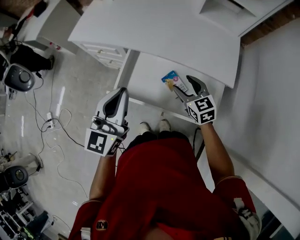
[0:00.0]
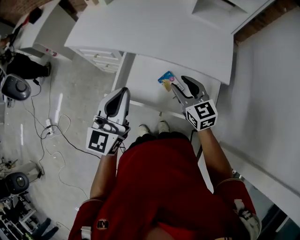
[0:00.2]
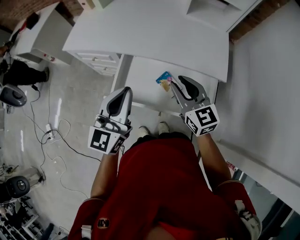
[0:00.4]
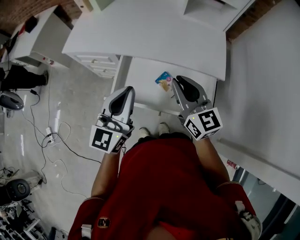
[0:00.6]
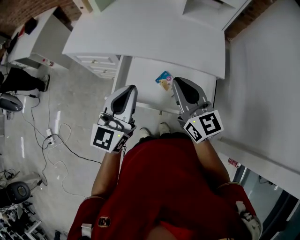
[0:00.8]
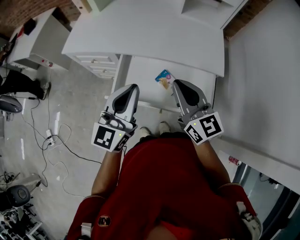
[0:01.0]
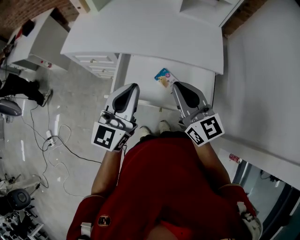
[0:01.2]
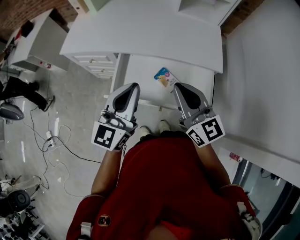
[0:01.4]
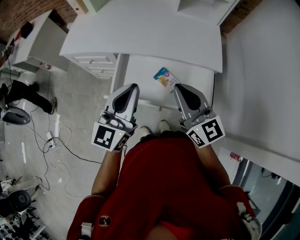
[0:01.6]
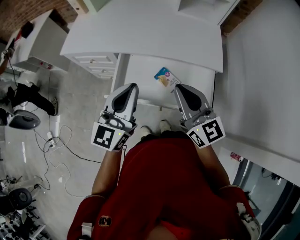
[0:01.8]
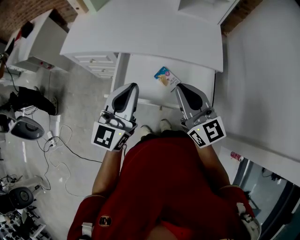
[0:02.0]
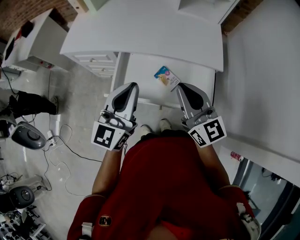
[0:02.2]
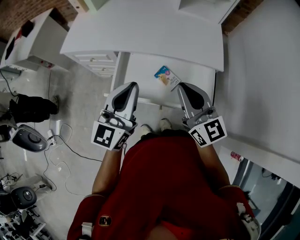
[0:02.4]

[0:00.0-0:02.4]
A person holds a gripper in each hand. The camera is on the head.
0:00.0 to 0:01.2: The right gripper heads upward and backward, covering roughly 20 cm, changes its angle by roughly 30 degrees, and closes its fingers.
0:01.2 to 0:02.4: The grippers make only small movements.

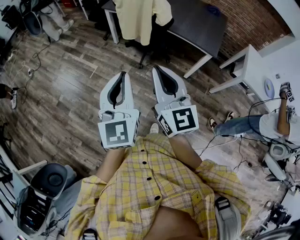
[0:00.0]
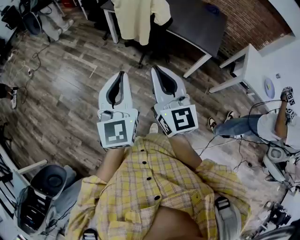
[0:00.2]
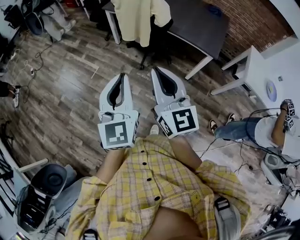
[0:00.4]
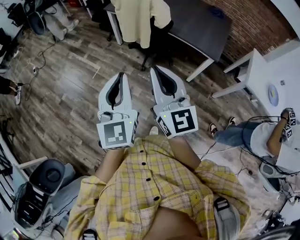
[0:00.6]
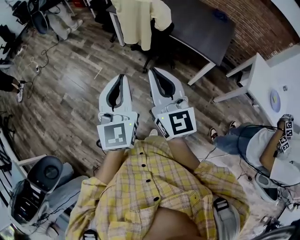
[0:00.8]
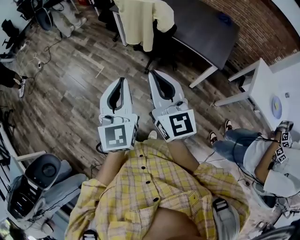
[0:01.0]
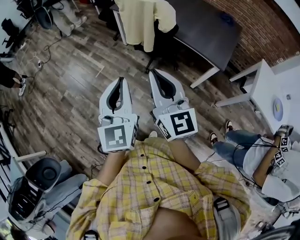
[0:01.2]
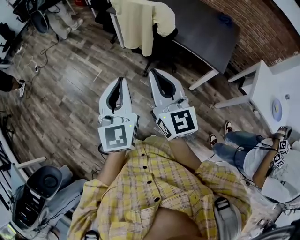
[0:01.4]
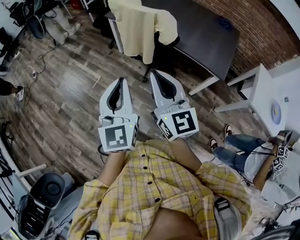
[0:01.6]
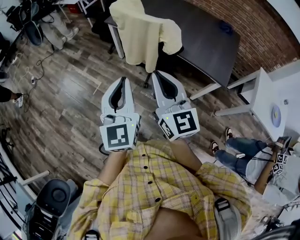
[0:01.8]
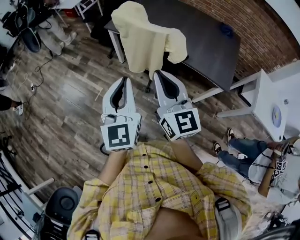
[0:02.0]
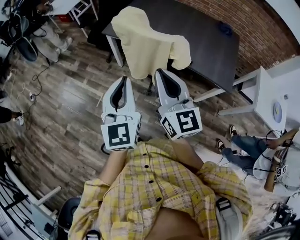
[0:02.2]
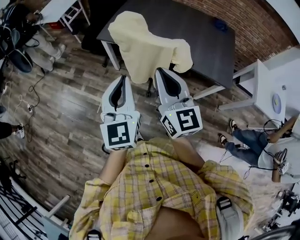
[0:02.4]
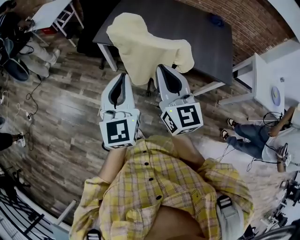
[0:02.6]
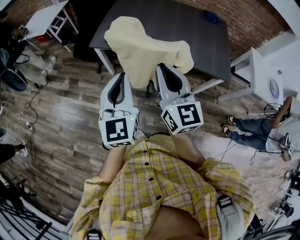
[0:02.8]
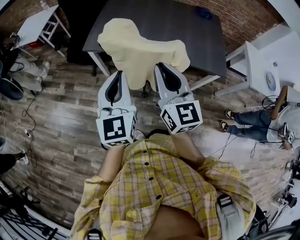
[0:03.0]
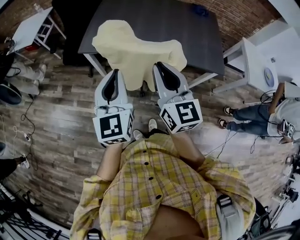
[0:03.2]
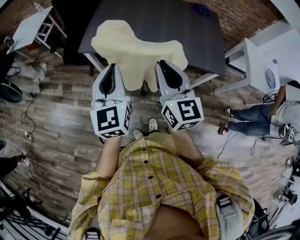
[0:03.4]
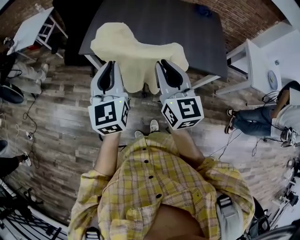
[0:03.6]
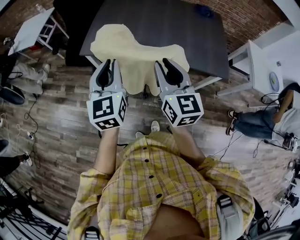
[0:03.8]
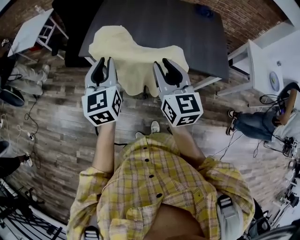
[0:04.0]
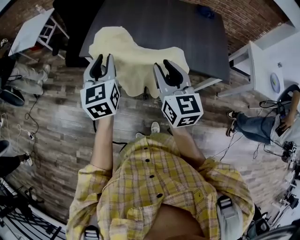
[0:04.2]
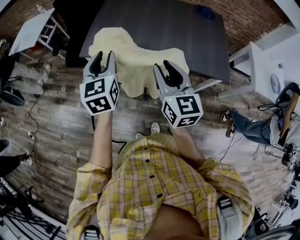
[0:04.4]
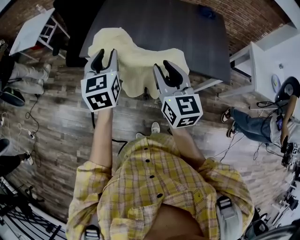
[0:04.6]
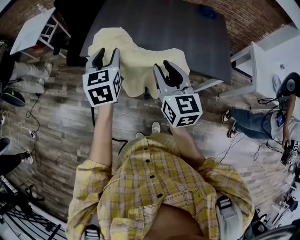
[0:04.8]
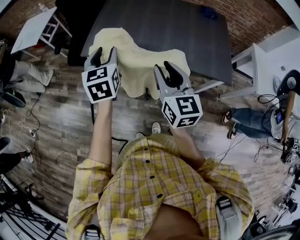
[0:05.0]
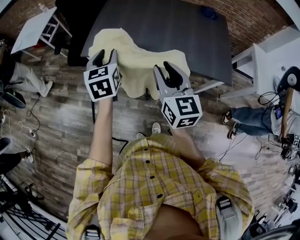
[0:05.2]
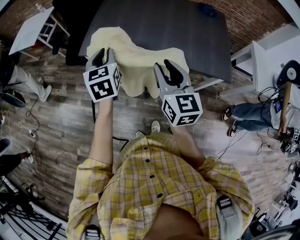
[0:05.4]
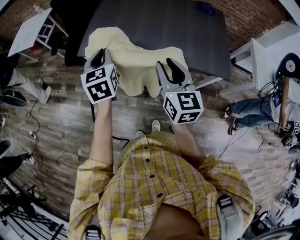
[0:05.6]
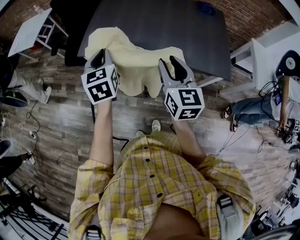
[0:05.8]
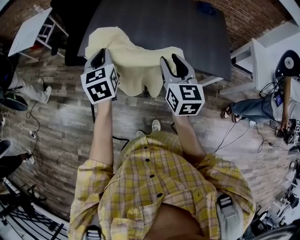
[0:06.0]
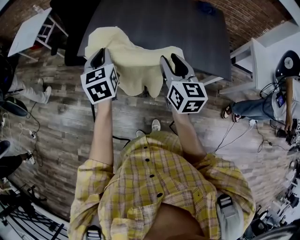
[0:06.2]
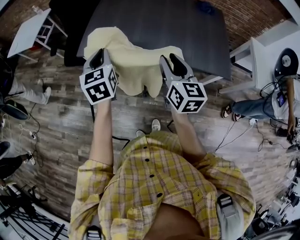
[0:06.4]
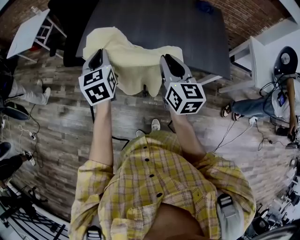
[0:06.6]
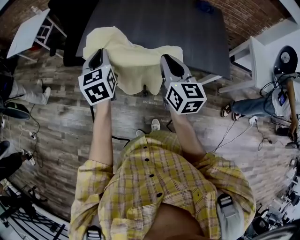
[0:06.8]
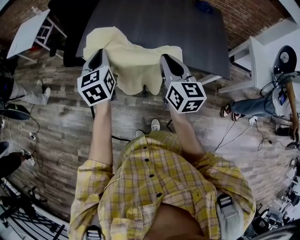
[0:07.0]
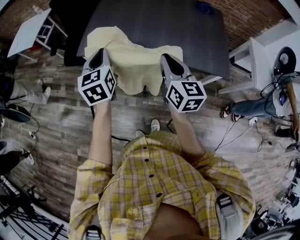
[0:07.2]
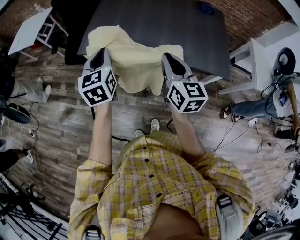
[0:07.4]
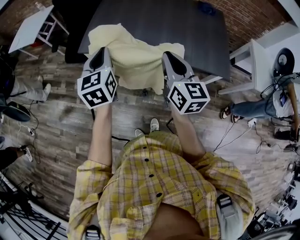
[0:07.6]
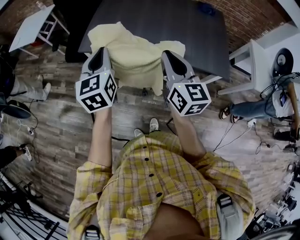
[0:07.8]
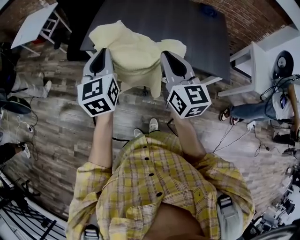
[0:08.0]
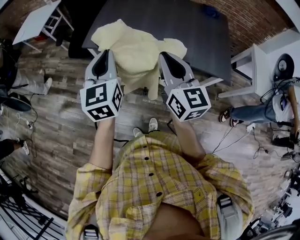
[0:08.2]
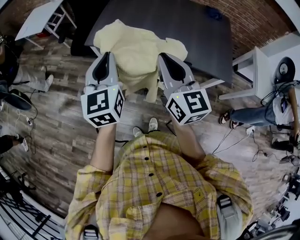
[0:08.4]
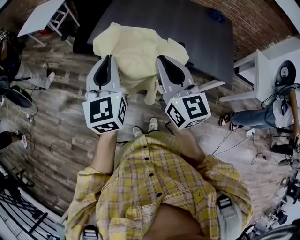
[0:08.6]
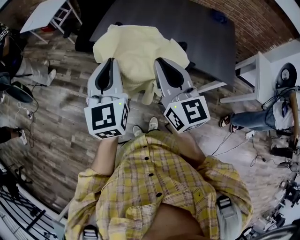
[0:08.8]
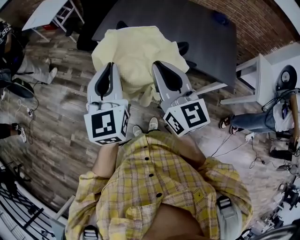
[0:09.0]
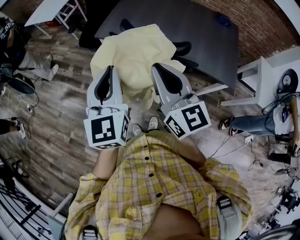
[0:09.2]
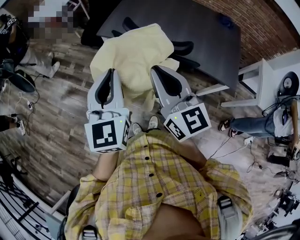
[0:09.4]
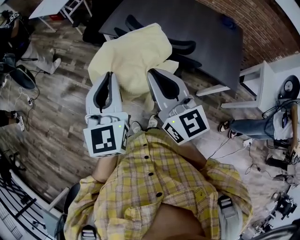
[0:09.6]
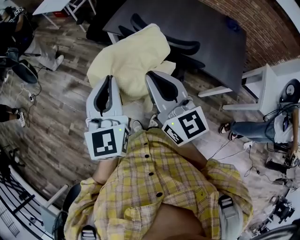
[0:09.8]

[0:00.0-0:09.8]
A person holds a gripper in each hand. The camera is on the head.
0:00.0 to 0:01.4: Both grippers move forward and to the right, approximately 10 cm.
0:01.4 to 0:02.8: The two grippers go some 35 cm forward. The left gripper turns by roughly 20 degrees, while the right gripper rotates roughly 30 degrees.
0:02.8 to 0:04.2: The right gripper travels forward and to the right by approximately 10 cm, and opens up; the left gripper travels forward by about 15 cm, and opens up.
0:04.2 to 0:05.6: The left gripper travels forward by approximately 5 cm.
0:05.6 to 0:07.0: The right gripper closes up.
0:07.0 to 0:08.4: The left gripper travels backward and upward by about 15 cm. The right gripper goes approximately 10 cm upward, backward and to the left.
0:08.4 to 0:09.8: The right gripper shifts about 15 cm to the left and backward, and rotates approximately 20 degrees; the left gripper goes roughly 15 cm backward and to the left.

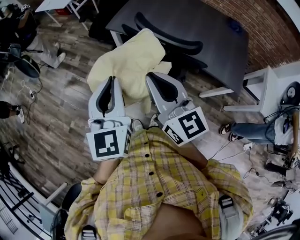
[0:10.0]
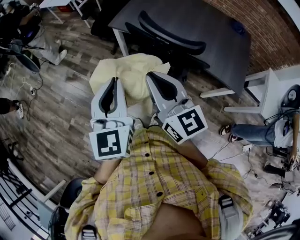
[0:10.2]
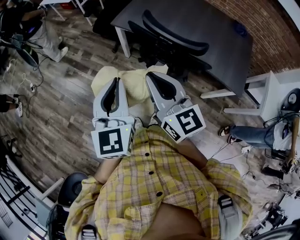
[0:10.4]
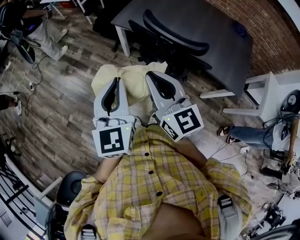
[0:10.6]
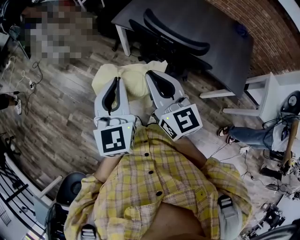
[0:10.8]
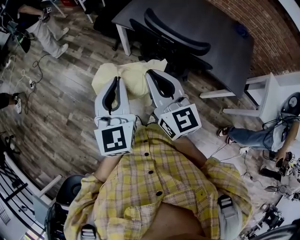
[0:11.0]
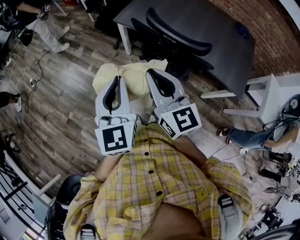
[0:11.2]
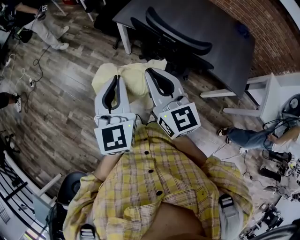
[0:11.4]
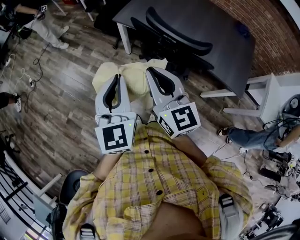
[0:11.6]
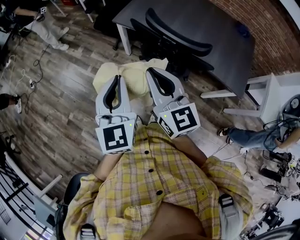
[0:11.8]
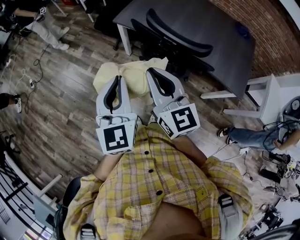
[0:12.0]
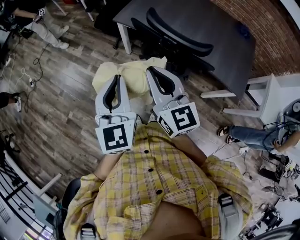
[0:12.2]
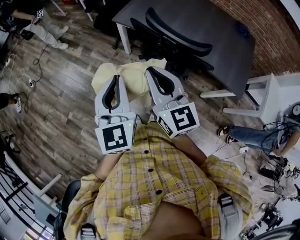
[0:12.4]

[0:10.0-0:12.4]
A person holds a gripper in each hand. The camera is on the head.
0:10.0 to 0:12.4: There are only small adjustments of the grippers.

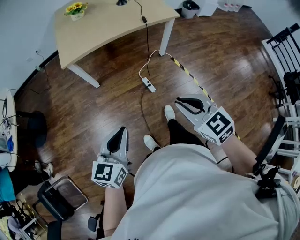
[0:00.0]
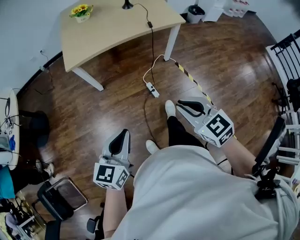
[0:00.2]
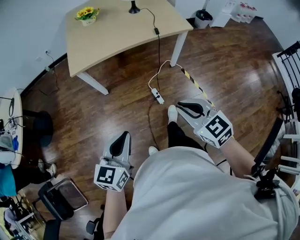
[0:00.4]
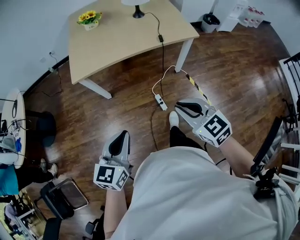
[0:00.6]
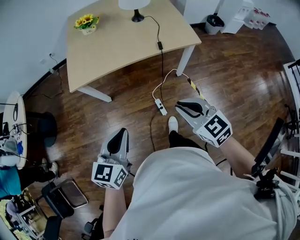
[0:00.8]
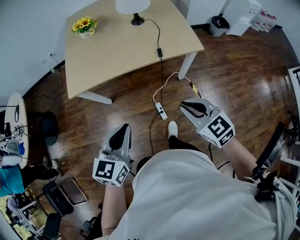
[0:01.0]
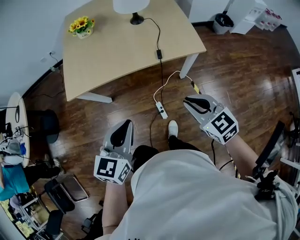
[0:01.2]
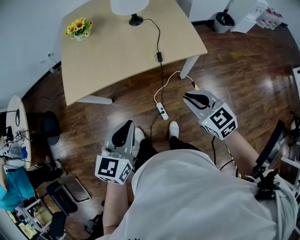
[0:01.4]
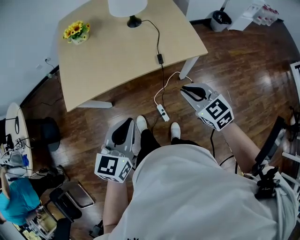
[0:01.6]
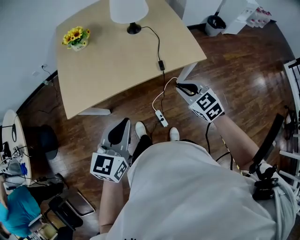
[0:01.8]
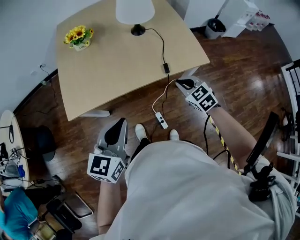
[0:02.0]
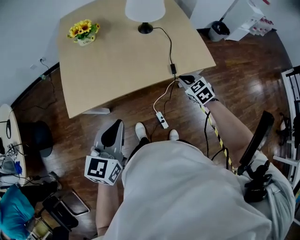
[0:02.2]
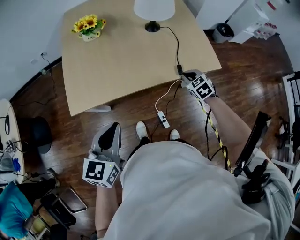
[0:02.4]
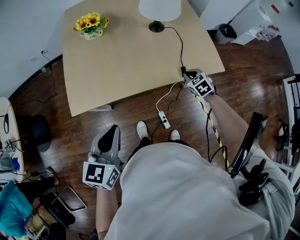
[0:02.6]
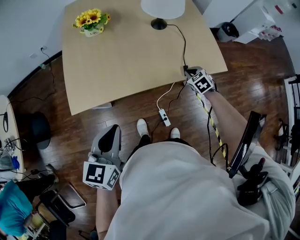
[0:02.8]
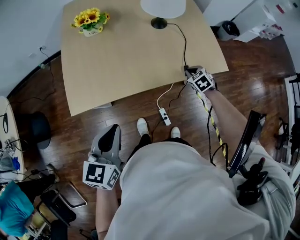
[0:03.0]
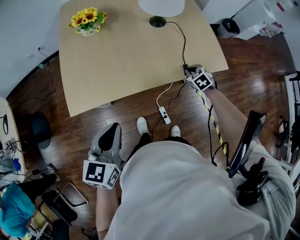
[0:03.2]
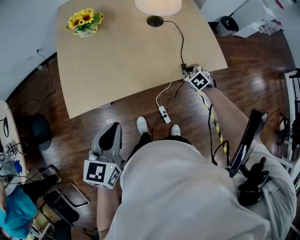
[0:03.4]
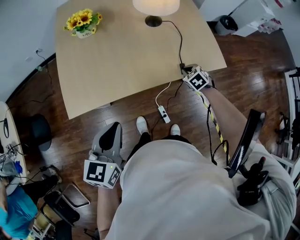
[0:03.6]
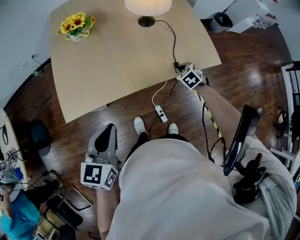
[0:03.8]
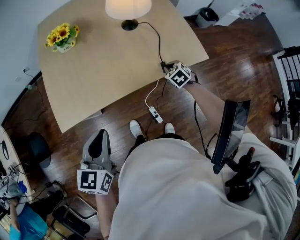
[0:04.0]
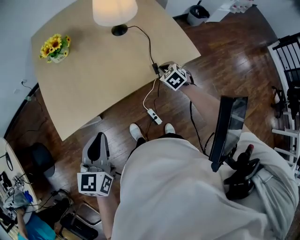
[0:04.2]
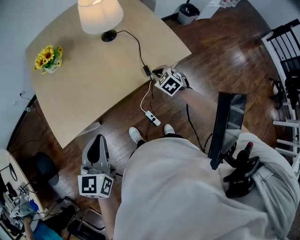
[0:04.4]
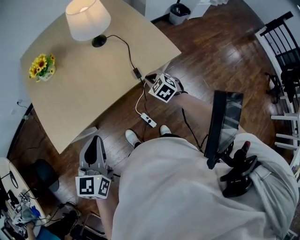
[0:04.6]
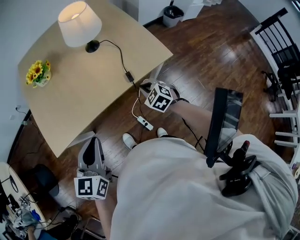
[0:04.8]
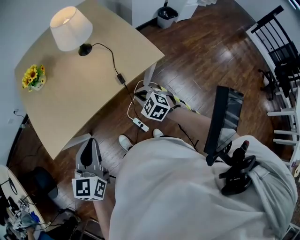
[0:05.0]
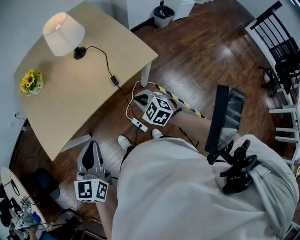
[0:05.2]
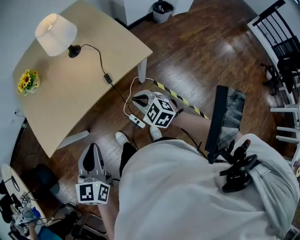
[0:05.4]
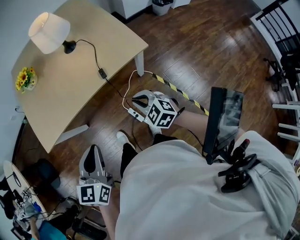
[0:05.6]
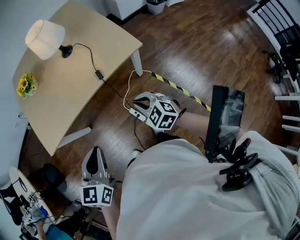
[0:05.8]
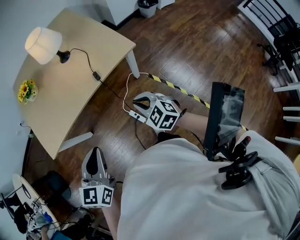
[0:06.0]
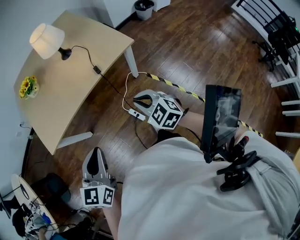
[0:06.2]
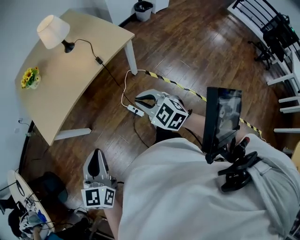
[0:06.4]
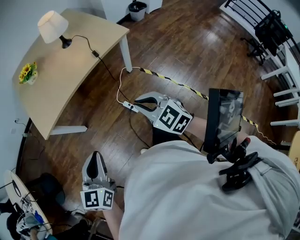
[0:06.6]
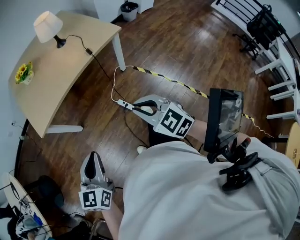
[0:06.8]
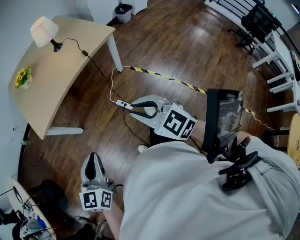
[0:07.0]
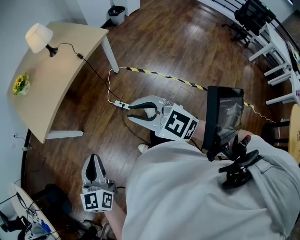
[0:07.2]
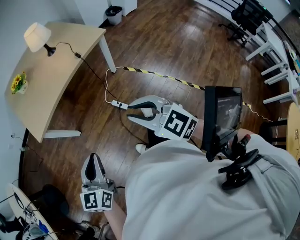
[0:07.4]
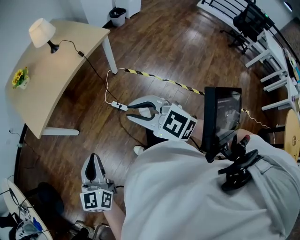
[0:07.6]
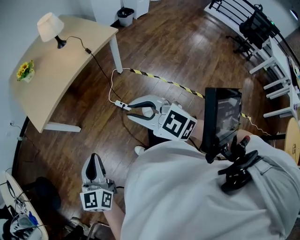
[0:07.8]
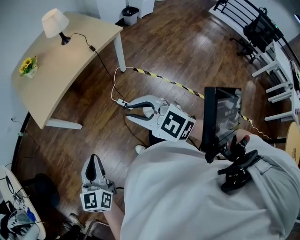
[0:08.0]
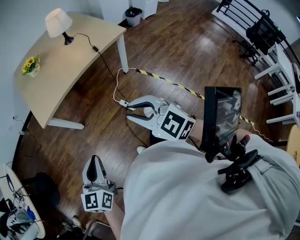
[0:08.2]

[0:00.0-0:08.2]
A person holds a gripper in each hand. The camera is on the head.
0:00.0 to 0:01.6: The right gripper moves forward, roughly 40 cm. The left gripper moves forward and to the right, about 40 cm.
0:01.6 to 0:03.2: The right gripper goes approximately 30 cm downward and forward, and angles its fingers downward, by roughly 30 degrees. The left gripper shifts some 20 cm to the left and forward.
0:03.2 to 0:05.0: The right gripper travels backward and upward by about 15 cm; the left gripper shifts about 10 cm to the right.
0:05.0 to 0:06.6: The right gripper shifts some 35 cm backward and upward, and changes its angle by some 20 degrees. The left gripper is displaced backward by roughly 25 cm.
0:06.6 to 0:08.2: The right gripper shifts about 15 cm backward, to the left and upward; the left gripper travels backward and to the left by some 10 cm.
